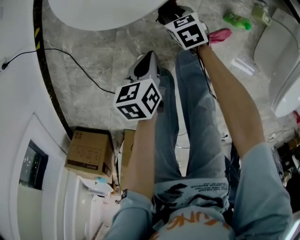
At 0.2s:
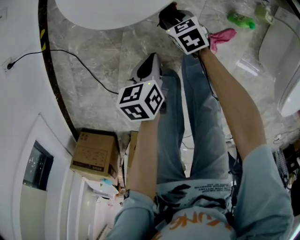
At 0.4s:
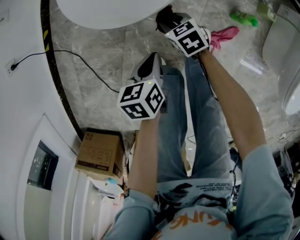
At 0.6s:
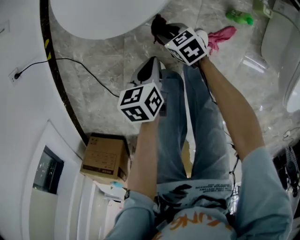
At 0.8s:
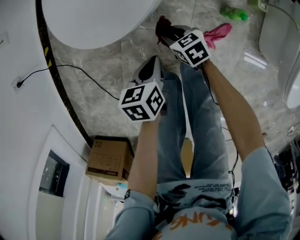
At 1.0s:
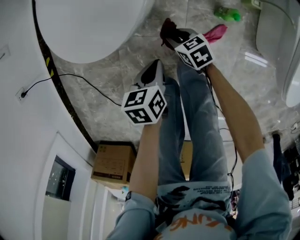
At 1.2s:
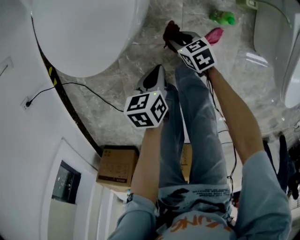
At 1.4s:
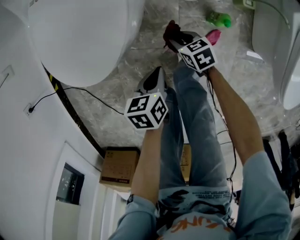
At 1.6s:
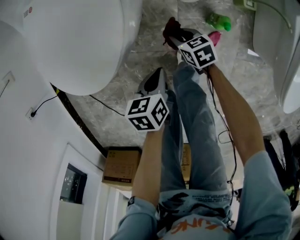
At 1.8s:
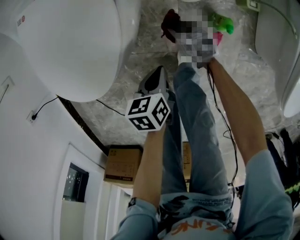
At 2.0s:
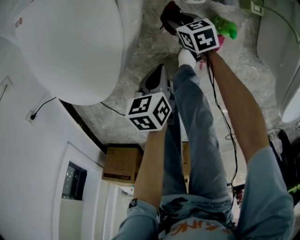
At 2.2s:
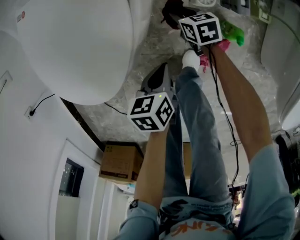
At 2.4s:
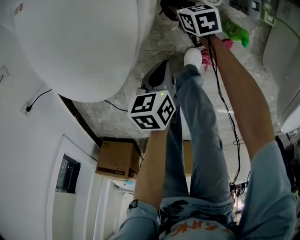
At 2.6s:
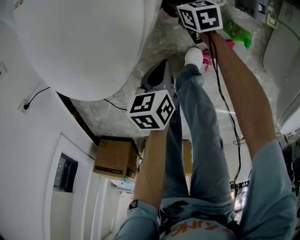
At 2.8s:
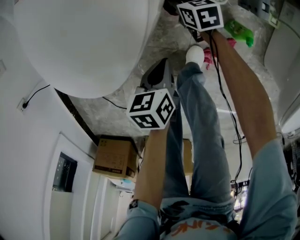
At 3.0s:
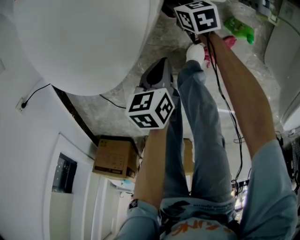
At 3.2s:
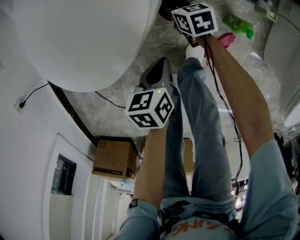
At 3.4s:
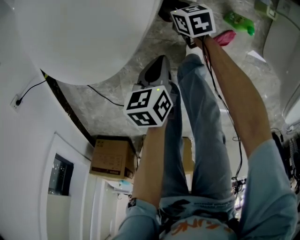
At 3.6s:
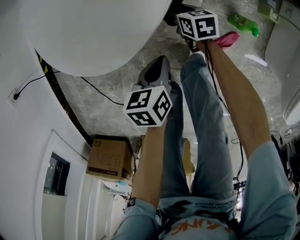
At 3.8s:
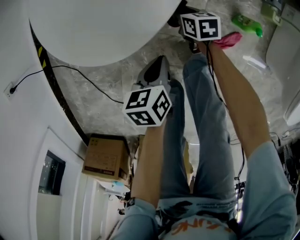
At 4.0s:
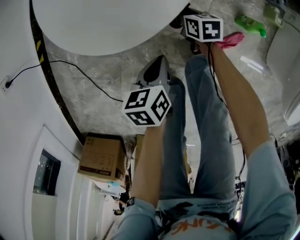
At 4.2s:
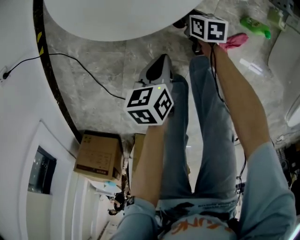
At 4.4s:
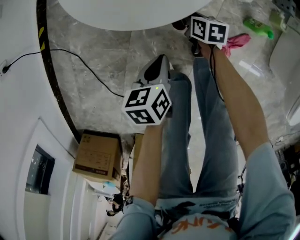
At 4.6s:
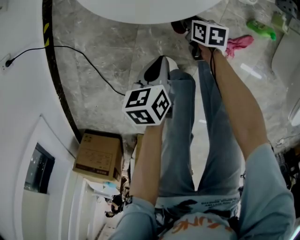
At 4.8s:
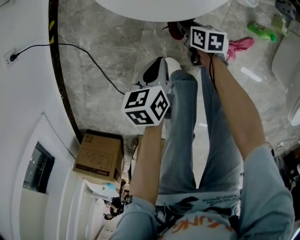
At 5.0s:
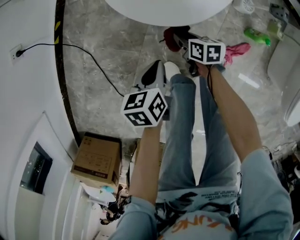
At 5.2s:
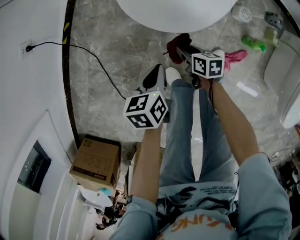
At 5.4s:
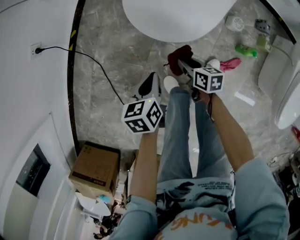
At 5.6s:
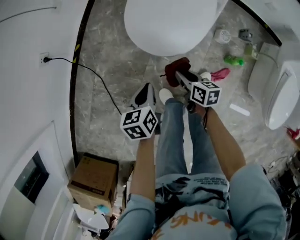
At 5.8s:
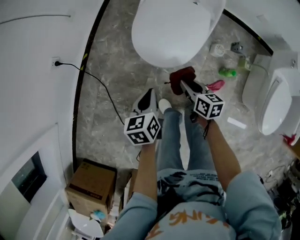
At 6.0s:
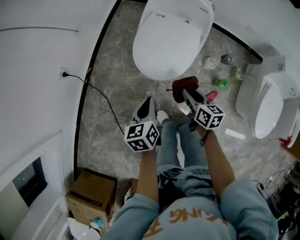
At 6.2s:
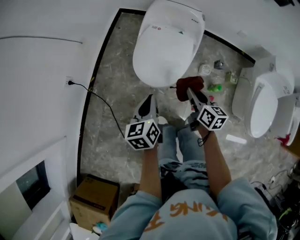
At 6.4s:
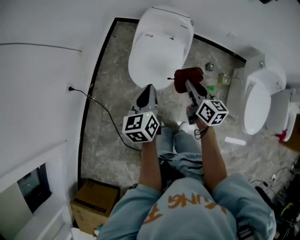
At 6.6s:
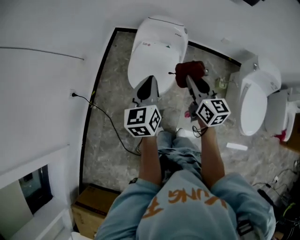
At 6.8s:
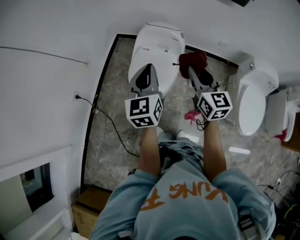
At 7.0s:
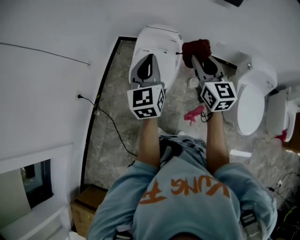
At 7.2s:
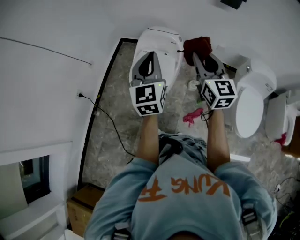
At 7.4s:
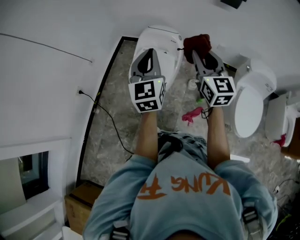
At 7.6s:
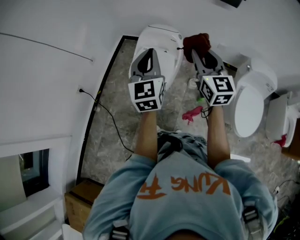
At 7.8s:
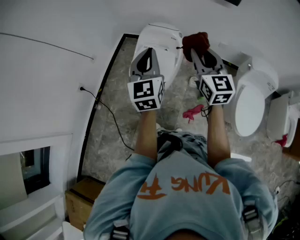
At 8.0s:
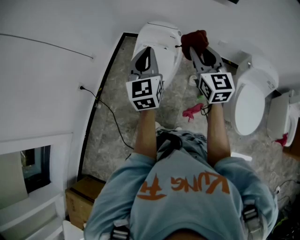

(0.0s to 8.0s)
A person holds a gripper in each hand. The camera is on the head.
0.0s - 1.6s: Both grippers travel together to the right, approximately 15 cm. The right gripper changes its angle by about 20 degrees.
1.6s - 3.2s: The right gripper moves forward, to the left and downward, some 15 cm; the left gripper changes place by approximately 5 cm.
3.2s - 4.8s: The two grippers go approximately 25 cm to the left and backward.
4.8s - 6.4s: Both grippers move upward, some 60 cm. The left gripper angles its fingers upward, by approximately 30 degrees; the right gripper angles its fingers upward, by about 30 degrees.
6.4s - 8.0s: The right gripper shifts some 30 cm upward, and swivels about 40 degrees. Meanwhile the left gripper is displaced upward and to the right by some 25 cm, and rotates approximately 30 degrees.

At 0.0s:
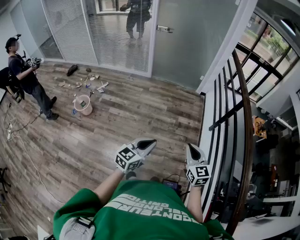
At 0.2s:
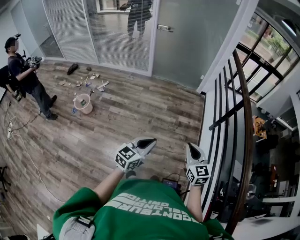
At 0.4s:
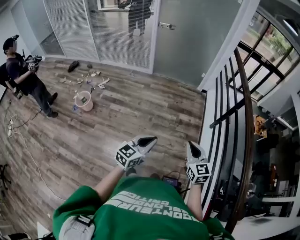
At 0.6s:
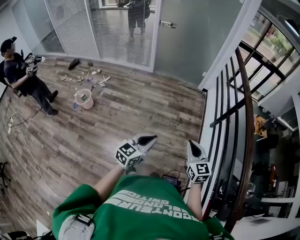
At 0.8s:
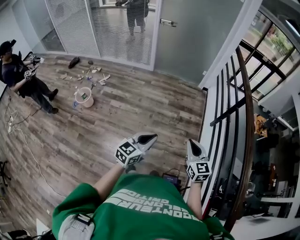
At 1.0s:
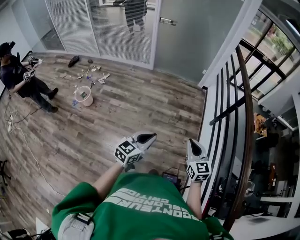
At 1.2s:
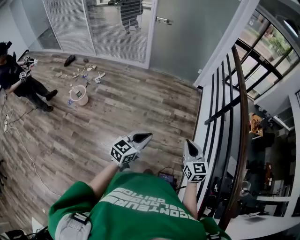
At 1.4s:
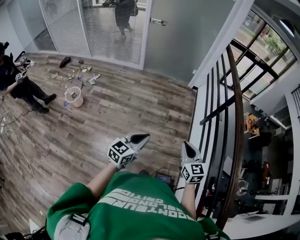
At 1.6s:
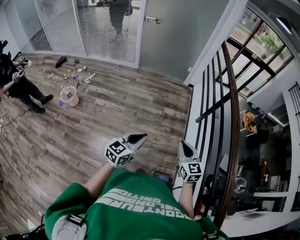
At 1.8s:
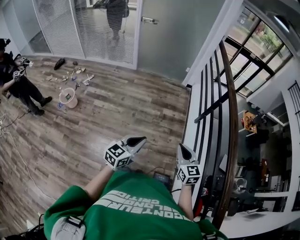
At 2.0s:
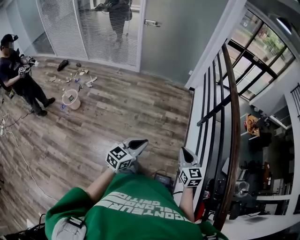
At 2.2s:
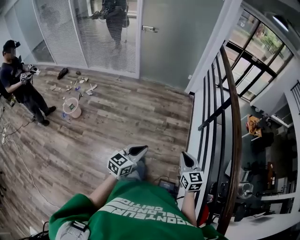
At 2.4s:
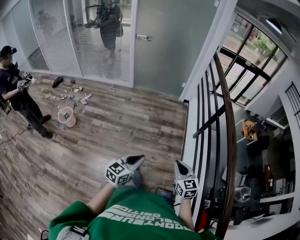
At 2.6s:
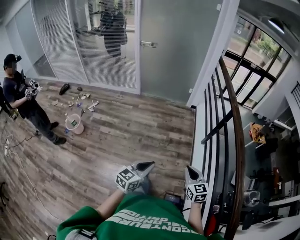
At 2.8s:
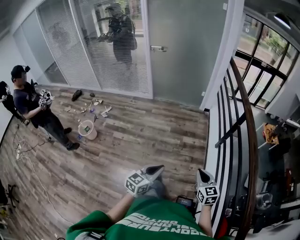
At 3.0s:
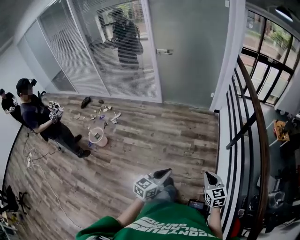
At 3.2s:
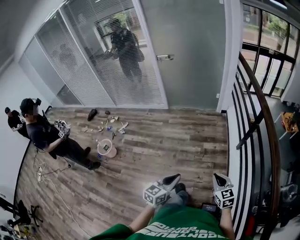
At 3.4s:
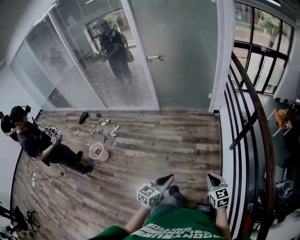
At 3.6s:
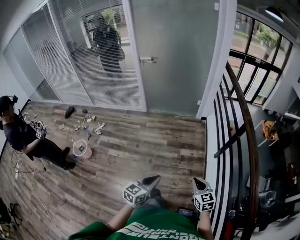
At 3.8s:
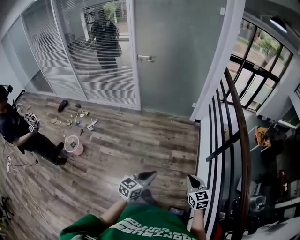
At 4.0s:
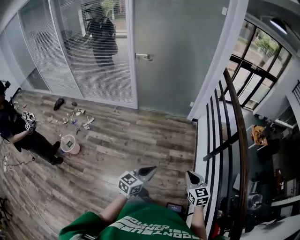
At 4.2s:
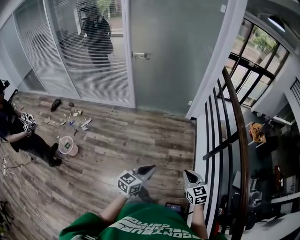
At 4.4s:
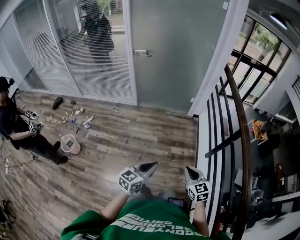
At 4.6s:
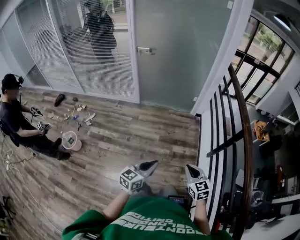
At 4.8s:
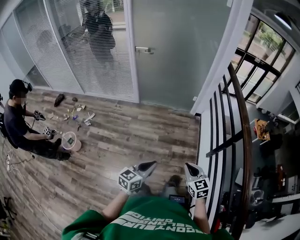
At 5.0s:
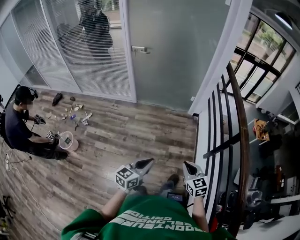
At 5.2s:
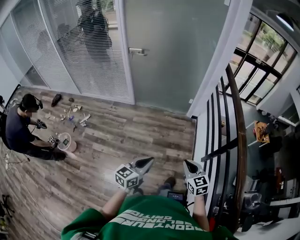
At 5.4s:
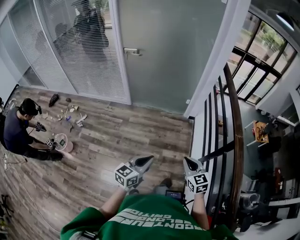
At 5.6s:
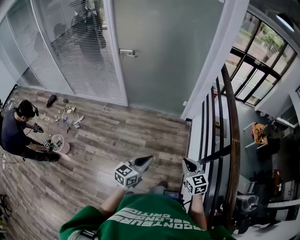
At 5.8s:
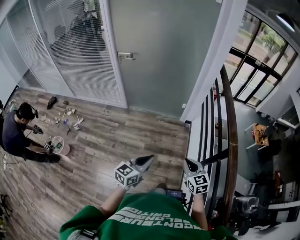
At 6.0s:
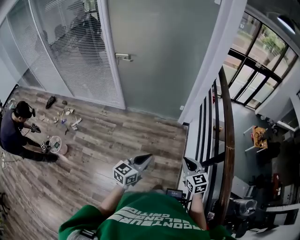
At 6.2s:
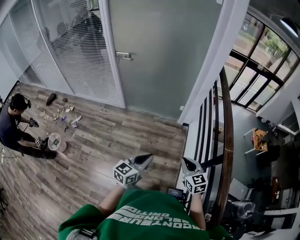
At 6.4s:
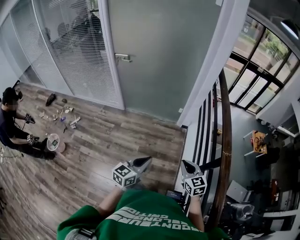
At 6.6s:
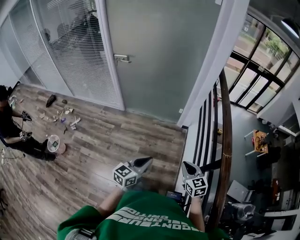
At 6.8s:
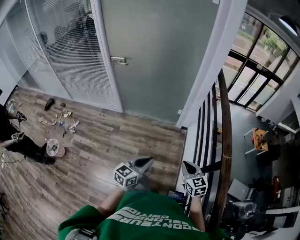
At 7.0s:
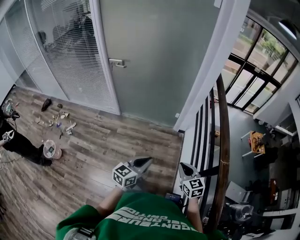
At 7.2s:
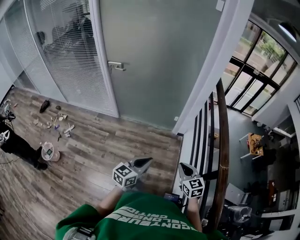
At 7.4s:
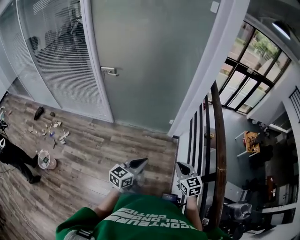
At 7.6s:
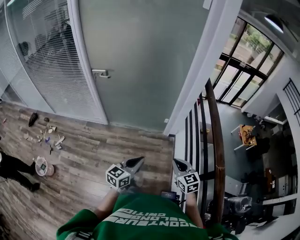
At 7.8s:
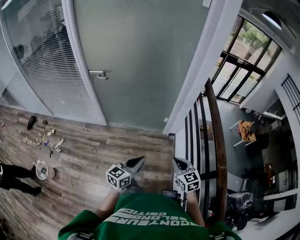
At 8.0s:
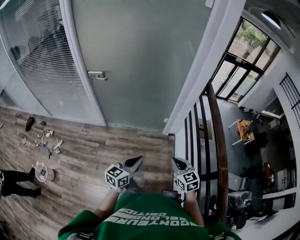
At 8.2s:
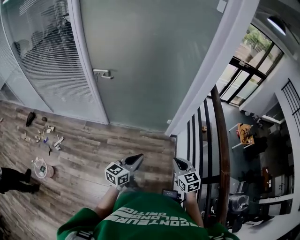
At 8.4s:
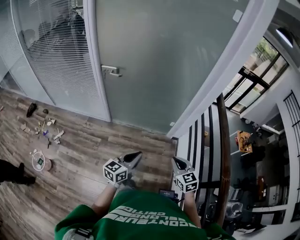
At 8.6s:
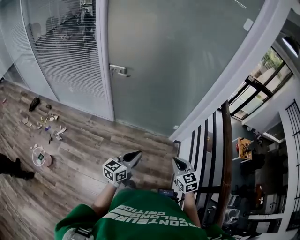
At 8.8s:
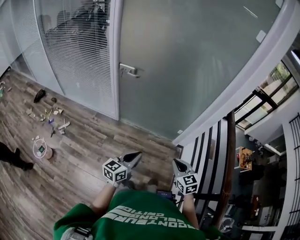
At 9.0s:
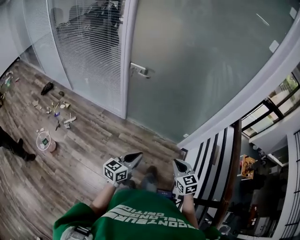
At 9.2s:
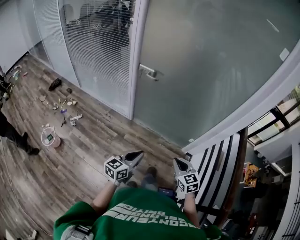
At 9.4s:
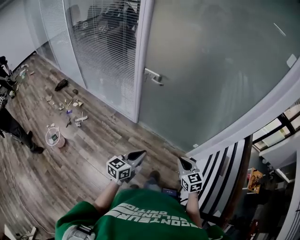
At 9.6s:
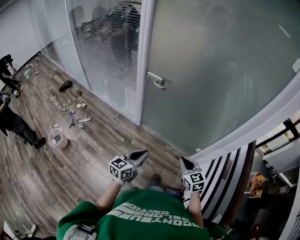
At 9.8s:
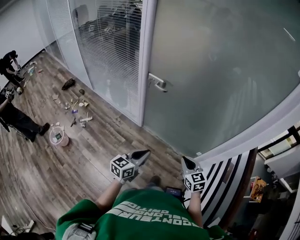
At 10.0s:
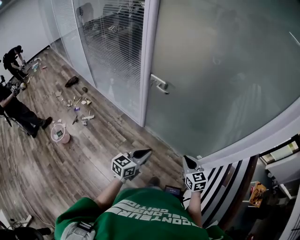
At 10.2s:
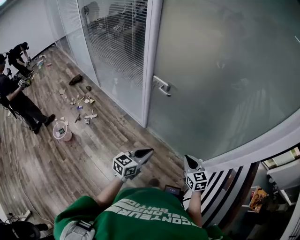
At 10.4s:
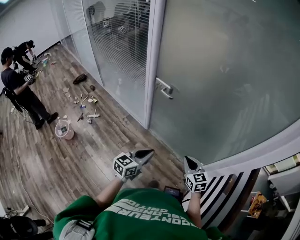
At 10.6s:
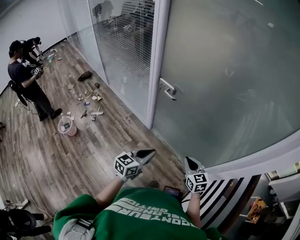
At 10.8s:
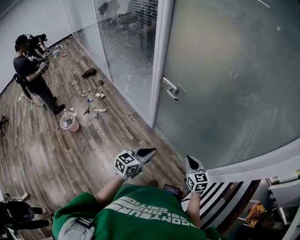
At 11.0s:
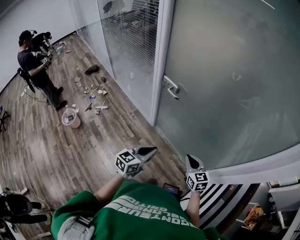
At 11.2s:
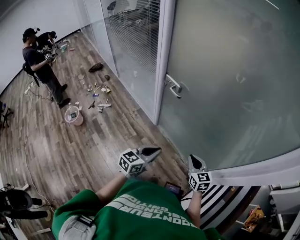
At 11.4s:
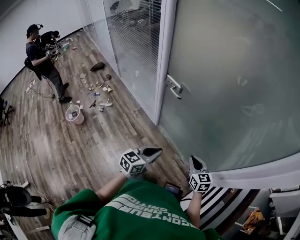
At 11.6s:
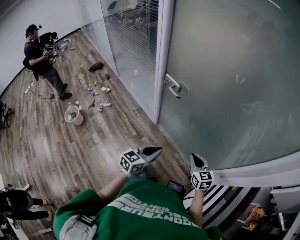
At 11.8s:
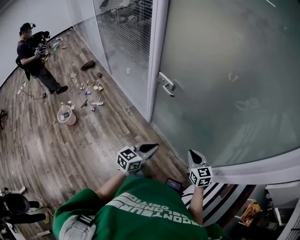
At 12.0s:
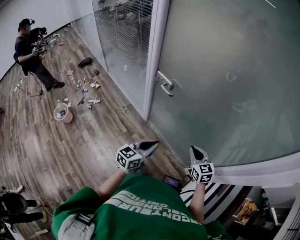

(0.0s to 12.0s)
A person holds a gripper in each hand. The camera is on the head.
0.0s - 1.6s: The two grippers go about 10 cm to the right.
1.6s - 3.0s: The right gripper heads forward and downward, covering some 10 cm. Meanwhile the left gripper goes some 5 cm forward.
3.0s - 4.4s: Both grippers move forward, approximately 20 cm.
4.4s - 6.0s: The grippers both shift forward and to the right by some 30 cm.
6.0s - 7.6s: Both grippers travel together forward, some 15 cm.
7.6s - 9.0s: The right gripper moves to the left and forward, some 20 cm. Meanwhile the left gripper heads to the left, covering approximately 20 cm.
9.0s - 10.4s: The grippers both shift forward by roughly 20 cm.
10.4s - 12.0s: Both grippers travel together forward and to the right, approximately 10 cm.

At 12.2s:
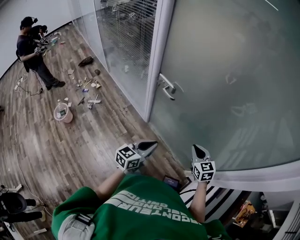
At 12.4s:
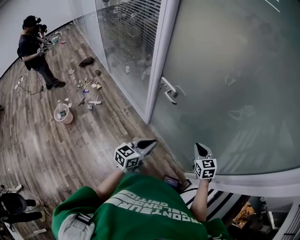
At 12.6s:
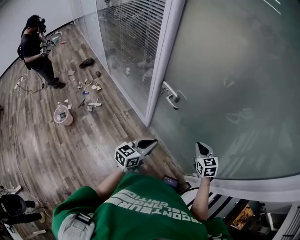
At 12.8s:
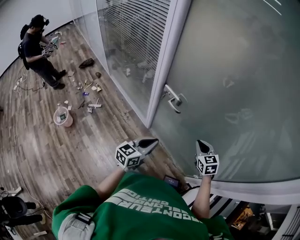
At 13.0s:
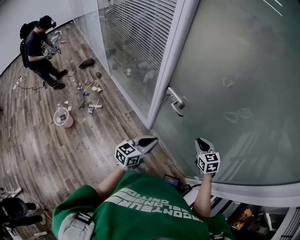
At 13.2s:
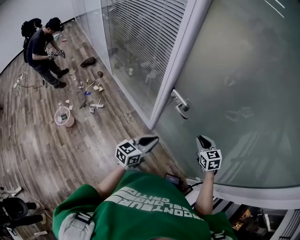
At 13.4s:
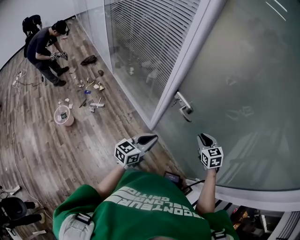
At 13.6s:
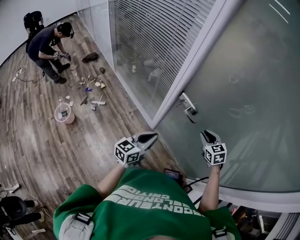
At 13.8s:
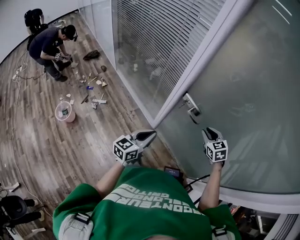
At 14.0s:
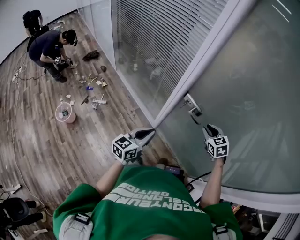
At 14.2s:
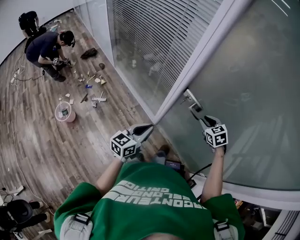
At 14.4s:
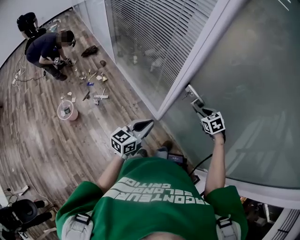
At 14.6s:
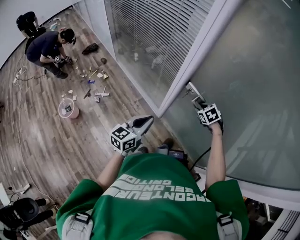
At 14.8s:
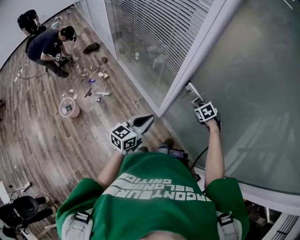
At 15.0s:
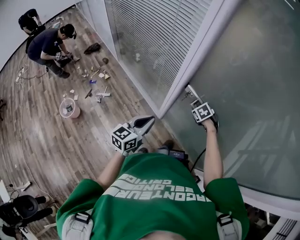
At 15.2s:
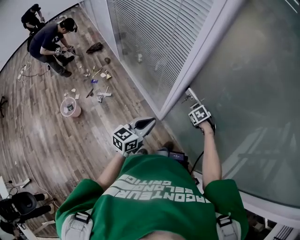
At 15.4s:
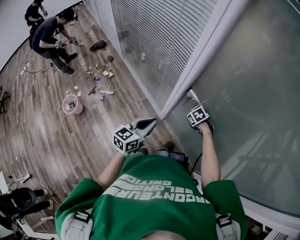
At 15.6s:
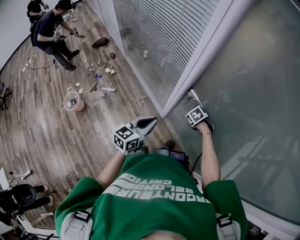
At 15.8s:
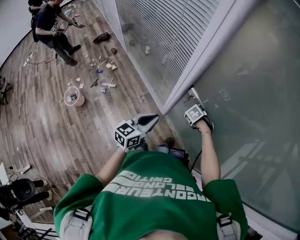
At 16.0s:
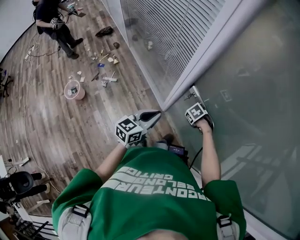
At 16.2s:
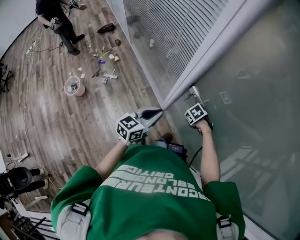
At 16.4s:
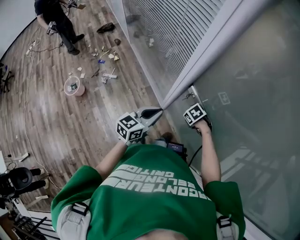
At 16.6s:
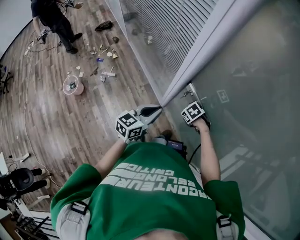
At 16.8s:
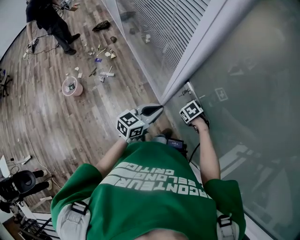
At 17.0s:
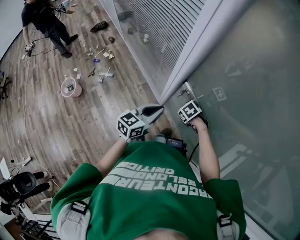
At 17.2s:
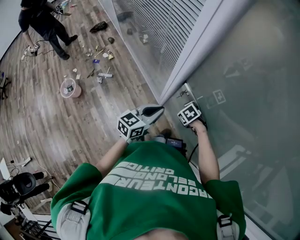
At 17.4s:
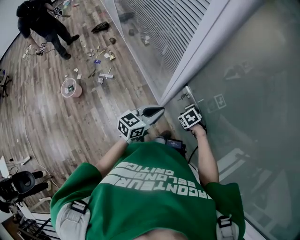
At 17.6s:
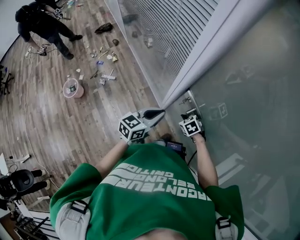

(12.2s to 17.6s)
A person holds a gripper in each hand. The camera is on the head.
12.2s - 13.6s: The left gripper moves to the left and forward, roughly 20 cm; the right gripper heads forward and to the left, covering roughly 25 cm.
13.6s - 15.0s: The left gripper shifts approximately 10 cm forward and to the left; the right gripper shifts approximately 20 cm downward, forward and to the left, and tips its fingers downward by some 30 degrees.
15.0s - 16.2s: The right gripper travels downward by about 5 cm, swivels approximately 20 degrees, and closes up. The left gripper changes place by about 5 cm.
16.2s - 17.6s: The right gripper changes its angle by roughly 20 degrees. The left gripper moves roughly 5 cm.
